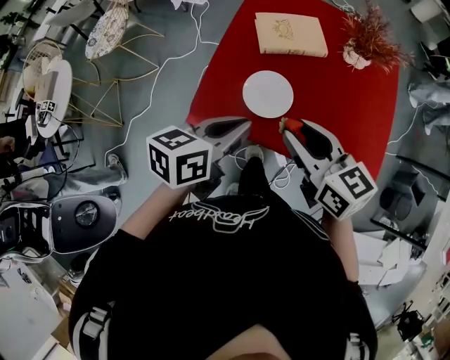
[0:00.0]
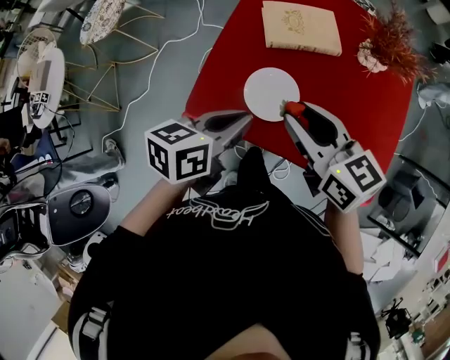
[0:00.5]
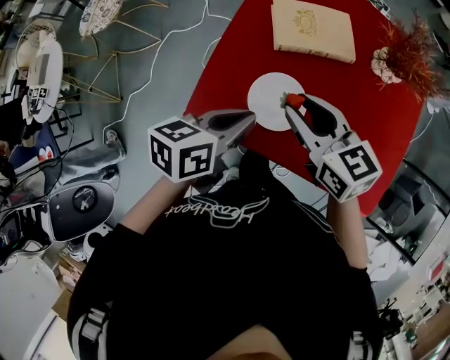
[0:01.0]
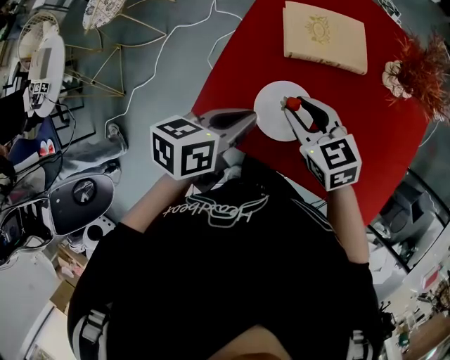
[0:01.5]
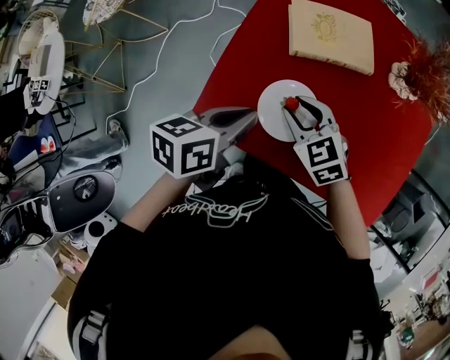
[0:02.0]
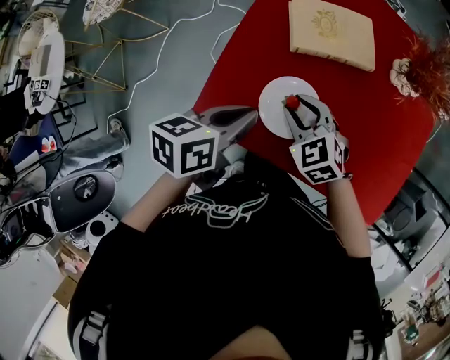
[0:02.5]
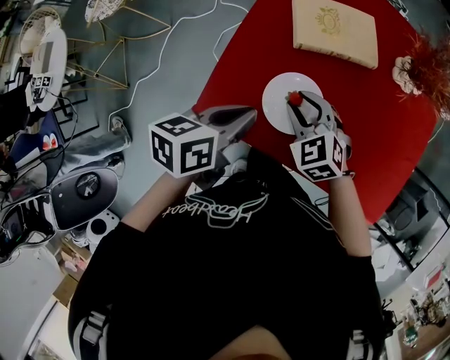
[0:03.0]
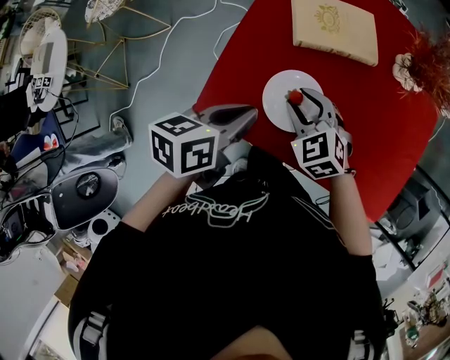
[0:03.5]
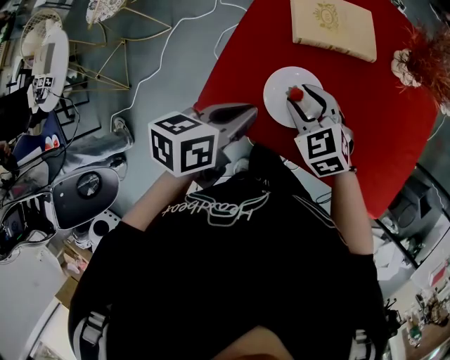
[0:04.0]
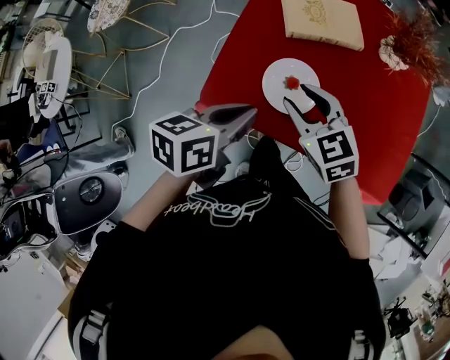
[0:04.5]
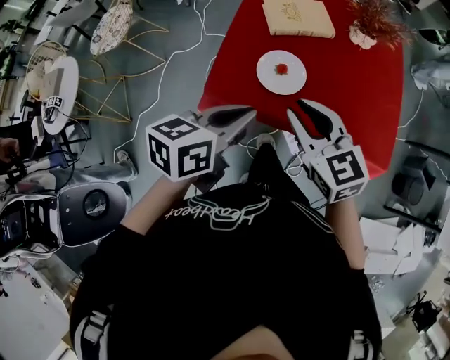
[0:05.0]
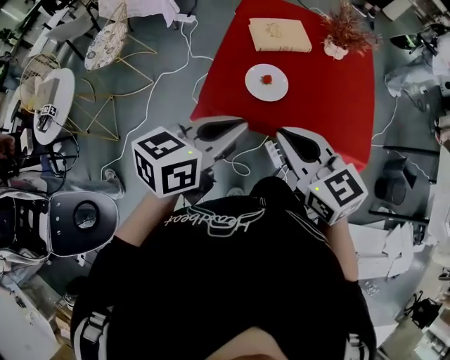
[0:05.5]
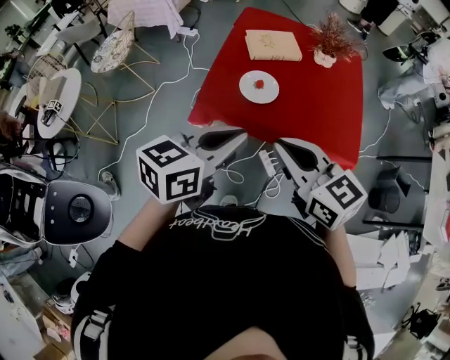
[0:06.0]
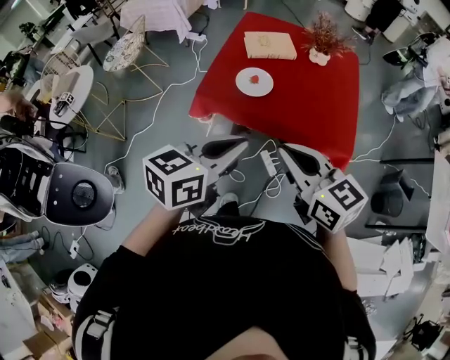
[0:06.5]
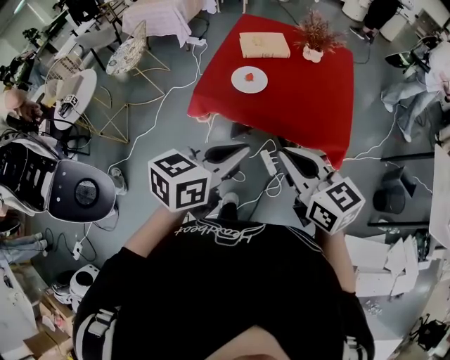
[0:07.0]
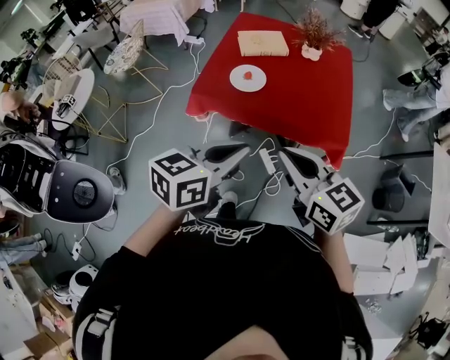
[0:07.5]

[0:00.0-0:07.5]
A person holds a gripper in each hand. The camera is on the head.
0.0 to 2.0 s: The right gripper is displaced downward and forward by some 25 cm, and changes its angle by roughly 40 degrees. Meanwhile the left gripper heads forward and downward, covering some 15 cm.
2.0 to 4.0 s: There are only small adjustments of the grippers.
4.0 to 5.5 s: Both grippers move backward and upward, roughly 30 cm. The left gripper rotates some 30 degrees. Meanwhile the right gripper turns by about 30 degrees, and closes.
5.5 to 7.5 s: Both grippers travel together backward and to the right, approximately 20 cm.

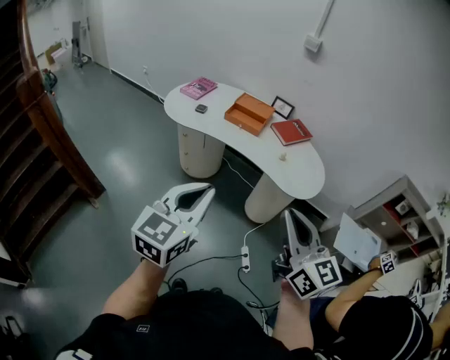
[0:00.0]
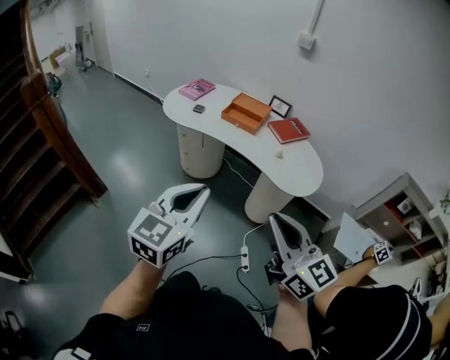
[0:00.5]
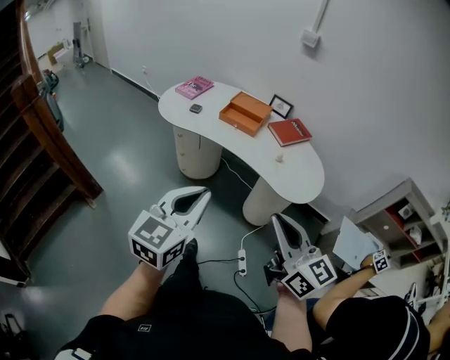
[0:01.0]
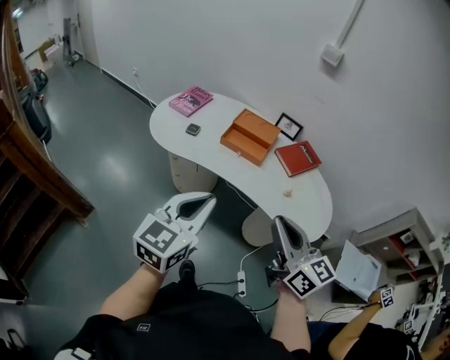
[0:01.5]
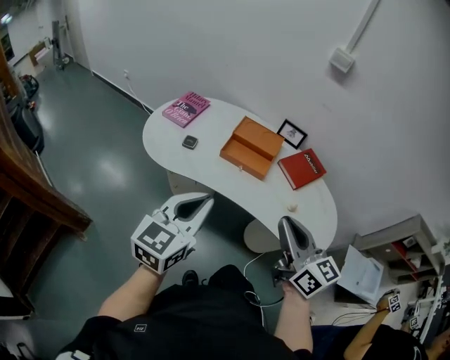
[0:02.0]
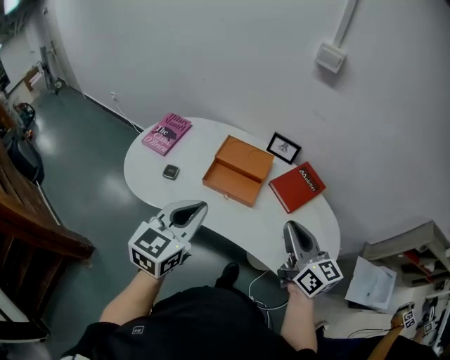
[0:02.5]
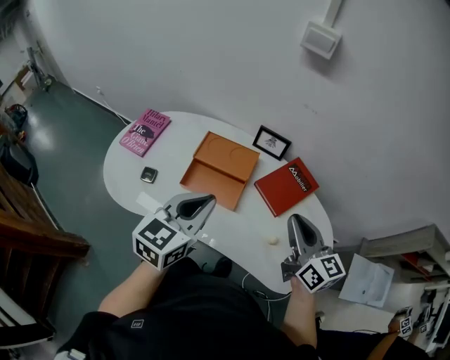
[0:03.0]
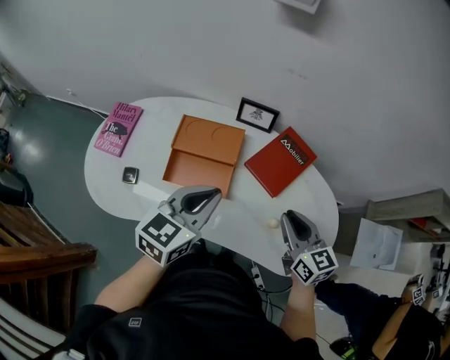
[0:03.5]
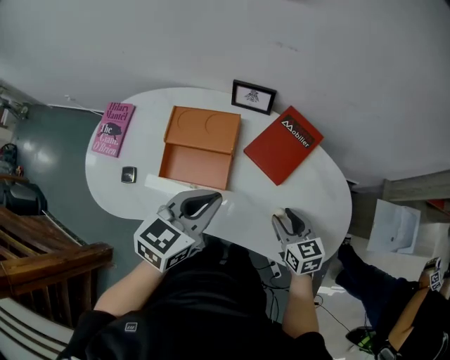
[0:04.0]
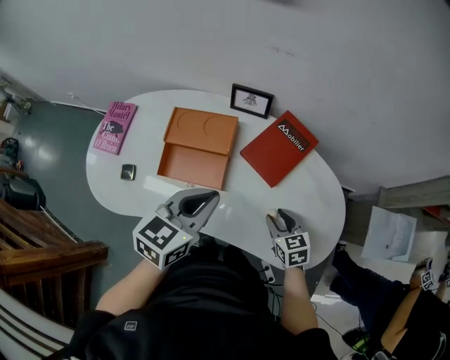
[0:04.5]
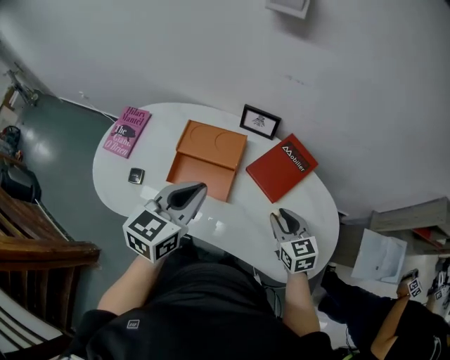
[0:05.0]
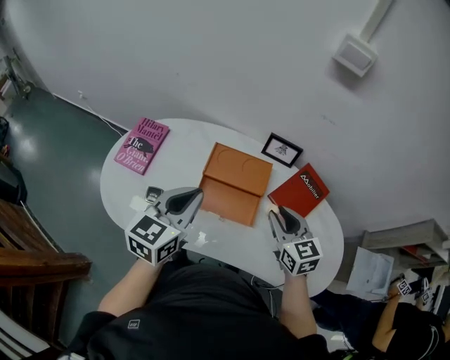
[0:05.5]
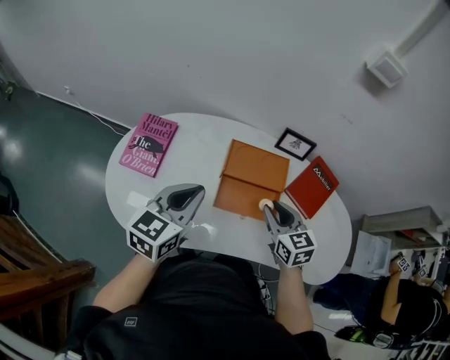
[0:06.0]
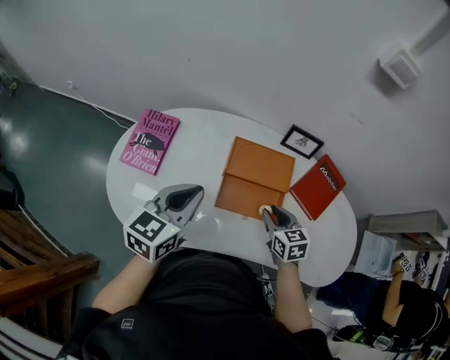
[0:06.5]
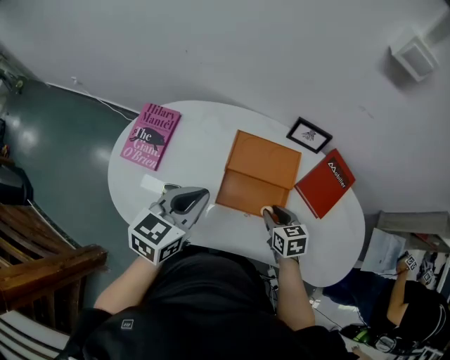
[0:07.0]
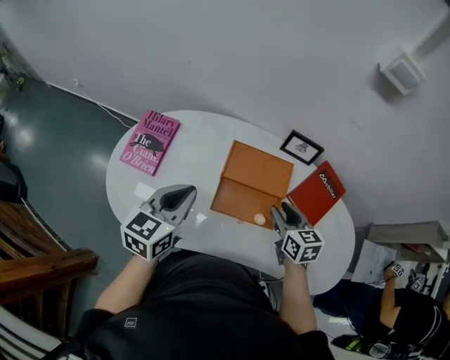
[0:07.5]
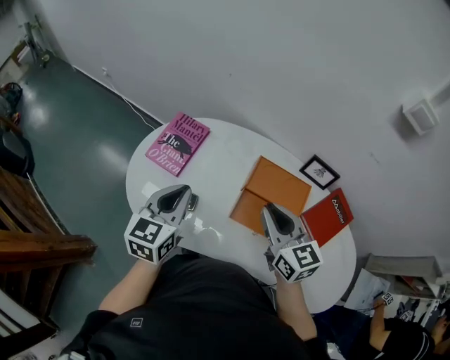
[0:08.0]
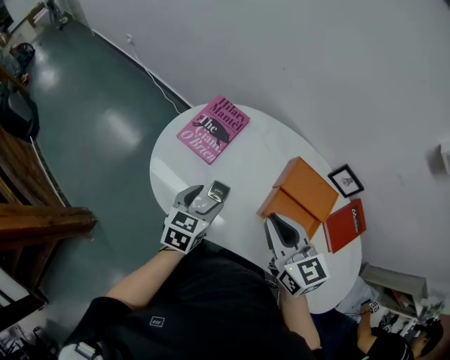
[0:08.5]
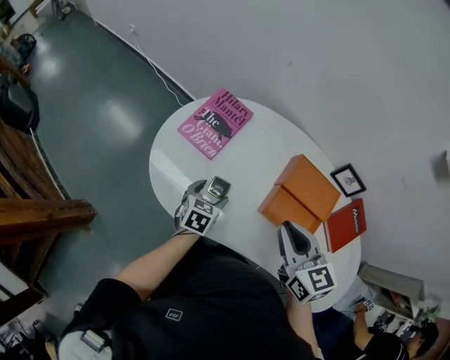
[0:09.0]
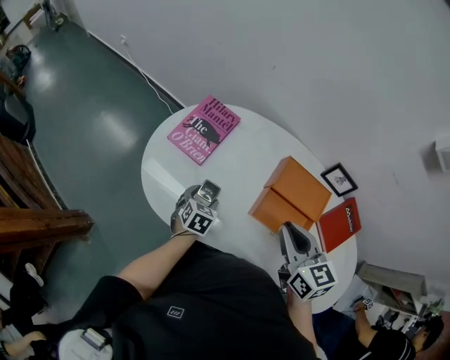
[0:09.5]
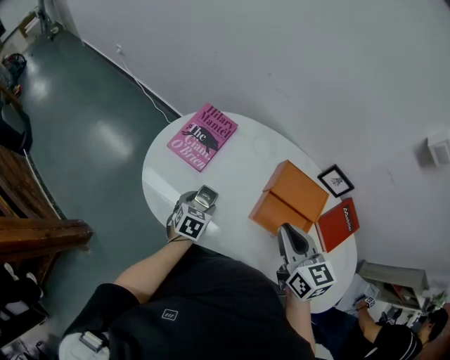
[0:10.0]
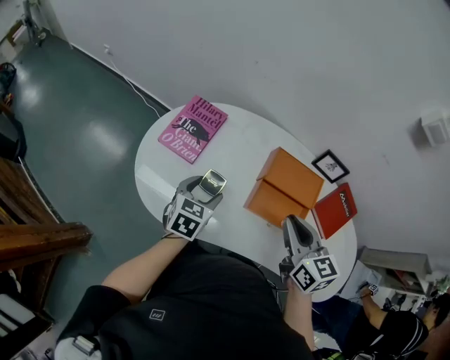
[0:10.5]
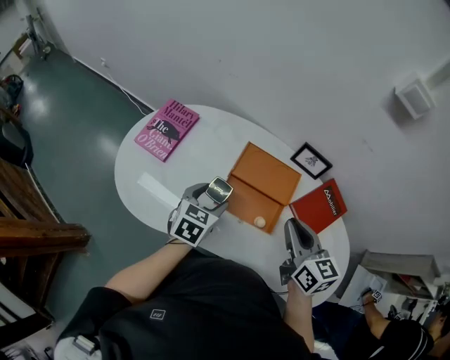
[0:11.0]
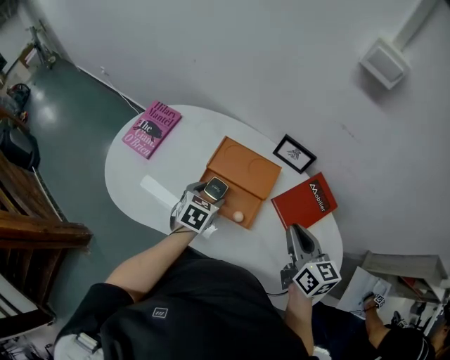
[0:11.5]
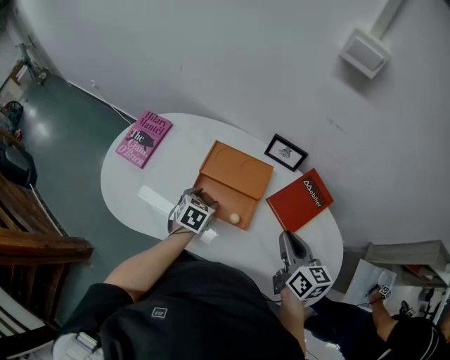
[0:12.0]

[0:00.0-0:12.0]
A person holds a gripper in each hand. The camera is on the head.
0.0 to 2.0 s: Both grippers move forward, roughly 35 cm.
2.0 to 4.0 s: The right gripper moves downward, forward and to the right, about 40 cm, tips its fingers downward by roughly 30 degrees, and opens its fingers, while the left gripper moves forward, to the right and downward, approximately 40 cm, and turns by roughly 30 degrees.
4.0 to 6.0 s: The right gripper shifts approximately 30 cm to the left and upward. The left gripper shifts some 30 cm to the left.
6.0 to 8.0 s: The right gripper is displaced to the left and upward by about 15 cm, and changes its angle by approximately 20 degrees, while the left gripper goes some 10 cm to the left, and swivels roughly 20 degrees.
8.0 to 10.0 s: The left gripper goes some 25 cm downward, swivels about 30 degrees, and opens.
10.0 to 12.0 s: Both grippers move to the right, about 30 cm. The right gripper rotates roughly 20 degrees.

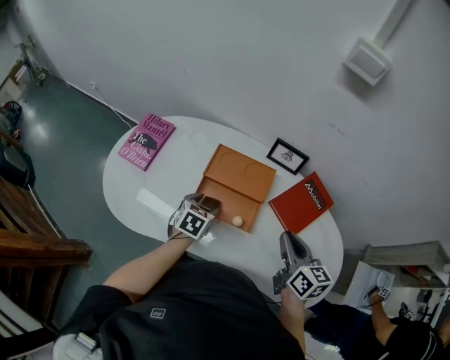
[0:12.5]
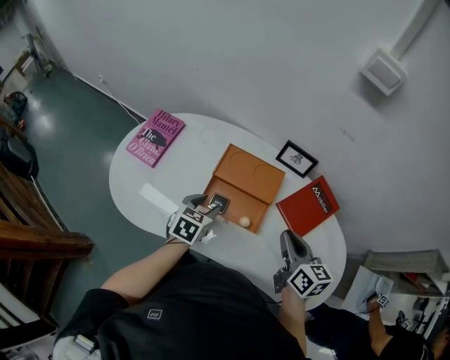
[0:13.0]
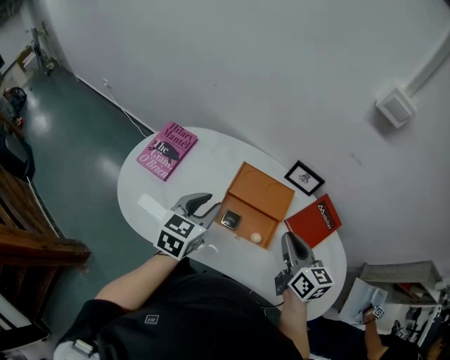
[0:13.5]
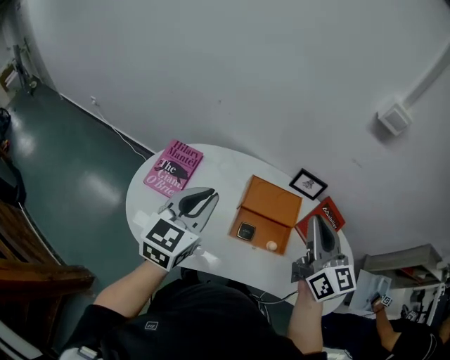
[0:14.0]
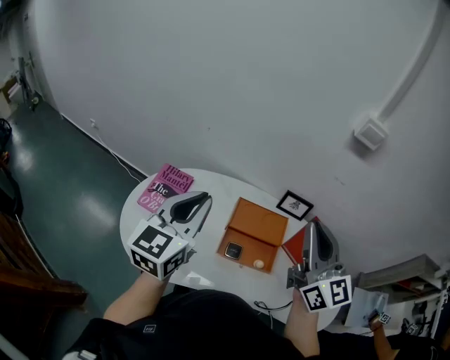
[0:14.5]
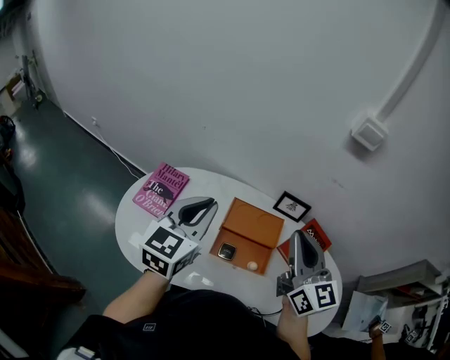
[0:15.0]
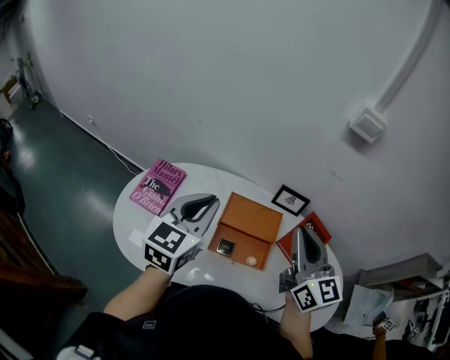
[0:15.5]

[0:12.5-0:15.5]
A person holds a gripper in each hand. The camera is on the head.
12.5 to 14.0 s: The two grippers go about 30 cm upward and to the left. The left gripper tips its fingers upward by roughly 40 degrees, and closes its fingers. The right gripper changes its angle by some 30 degrees.
14.0 to 15.5 s: The right gripper reaches approximately 10 cm upward, then returns, while the left gripper goes some 10 cm to the right.

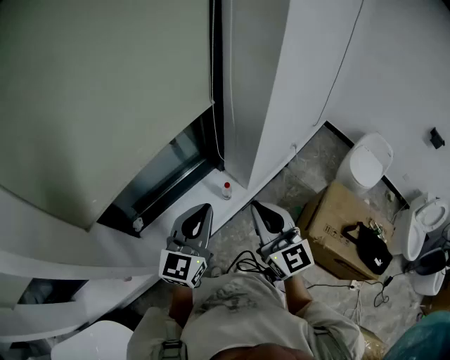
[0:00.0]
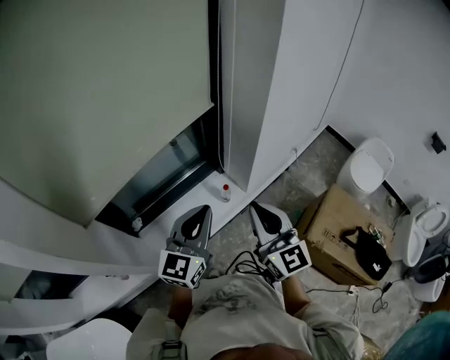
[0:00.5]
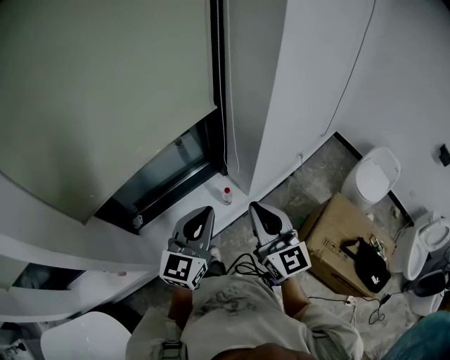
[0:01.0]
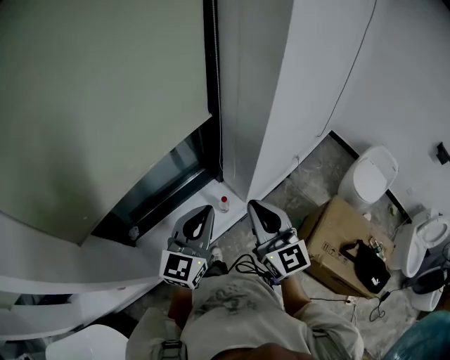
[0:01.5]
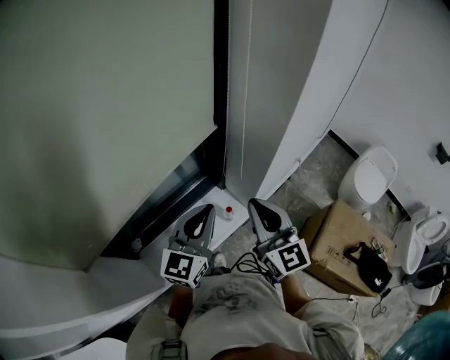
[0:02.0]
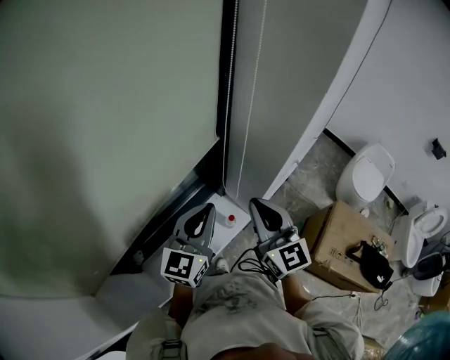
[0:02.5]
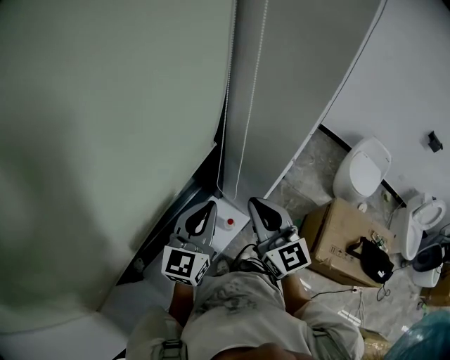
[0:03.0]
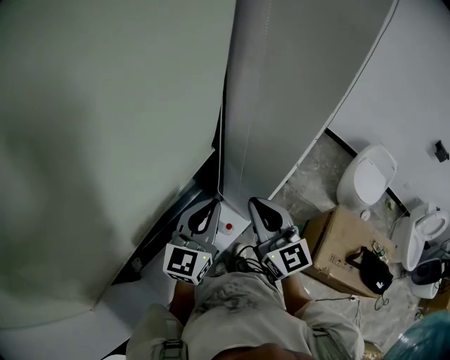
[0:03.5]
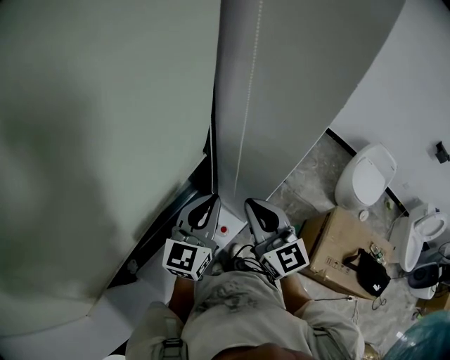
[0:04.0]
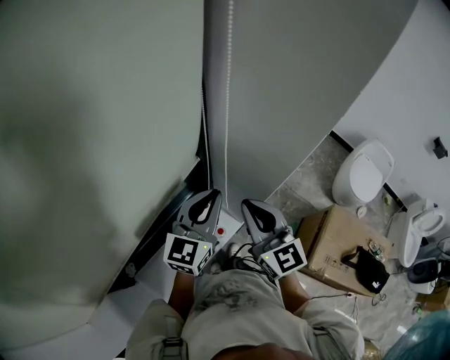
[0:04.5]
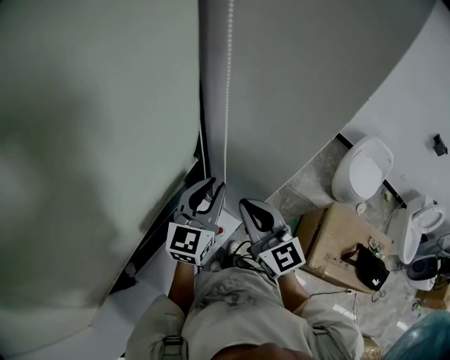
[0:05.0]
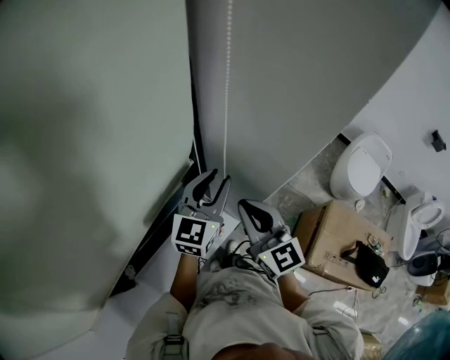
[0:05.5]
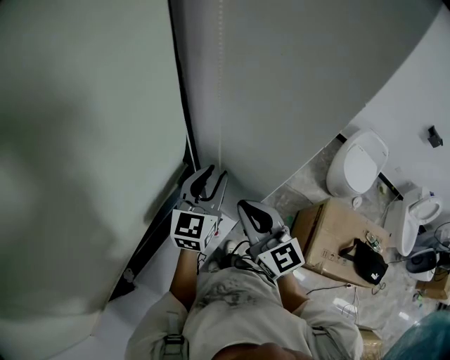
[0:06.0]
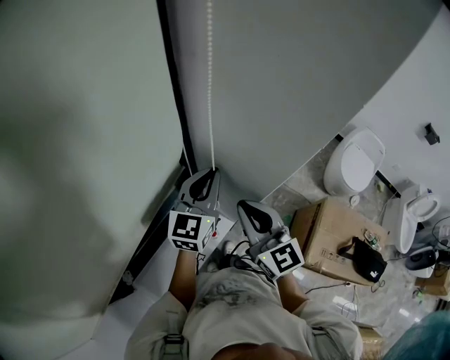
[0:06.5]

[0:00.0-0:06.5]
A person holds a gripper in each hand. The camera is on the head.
0.0 to 2.0 s: The two grippers go about 15 cm forward.
2.0 to 4.5 s: Both grippers travel together forward, about 20 cm.
4.5 to 6.5 s: The left gripper goes about 10 cm forward, and opens and closes again.
